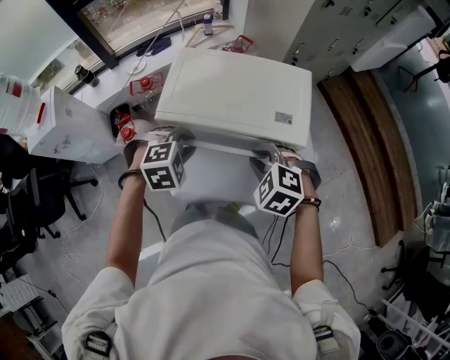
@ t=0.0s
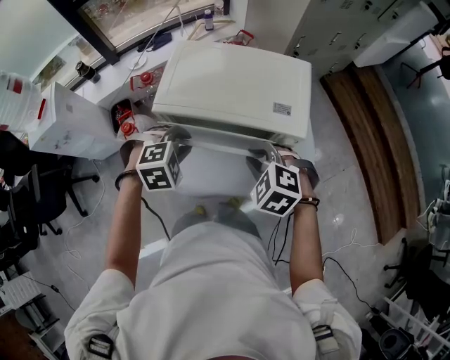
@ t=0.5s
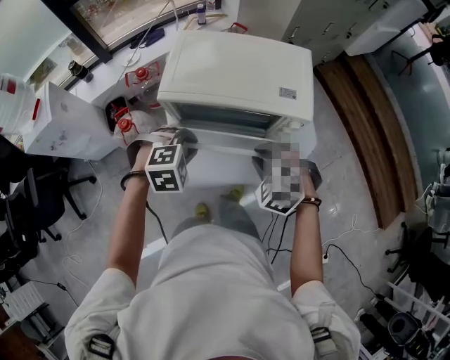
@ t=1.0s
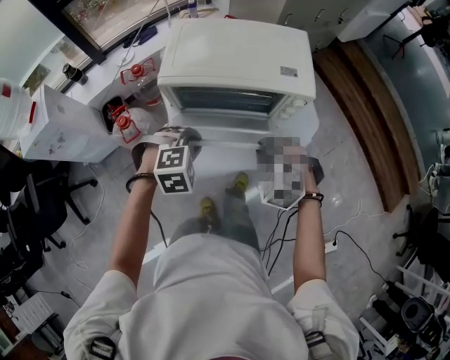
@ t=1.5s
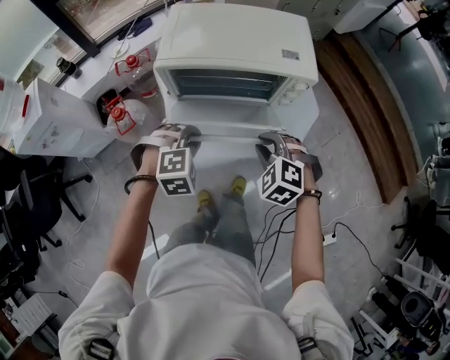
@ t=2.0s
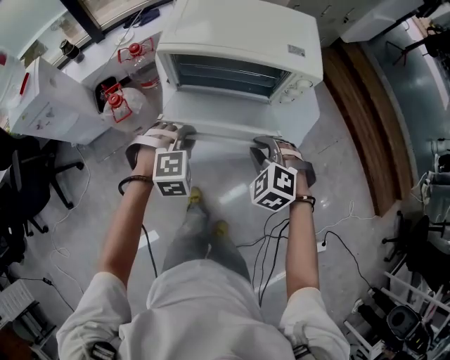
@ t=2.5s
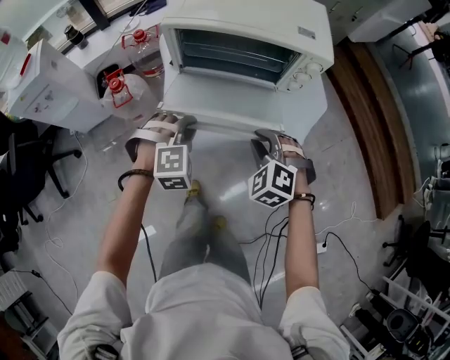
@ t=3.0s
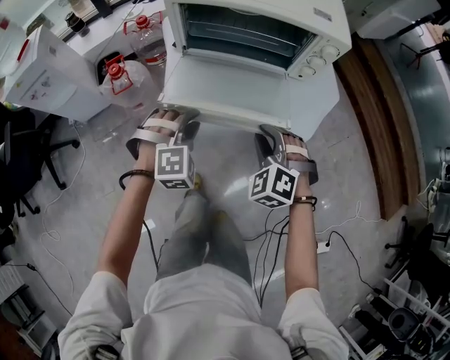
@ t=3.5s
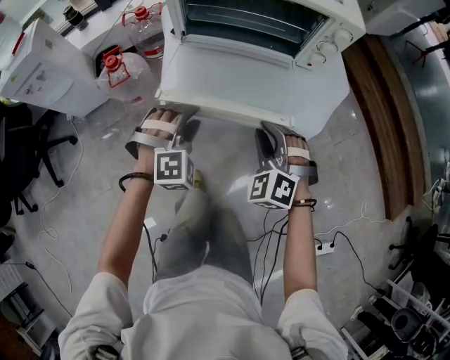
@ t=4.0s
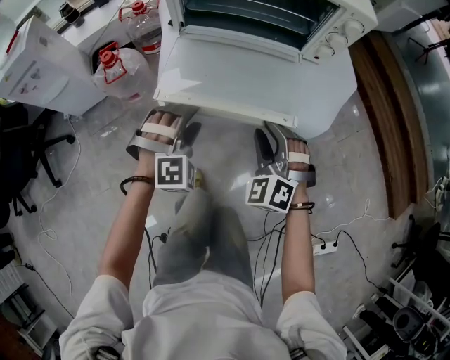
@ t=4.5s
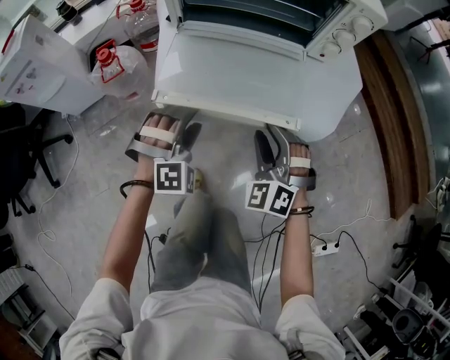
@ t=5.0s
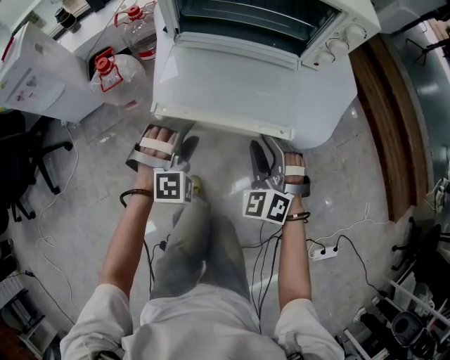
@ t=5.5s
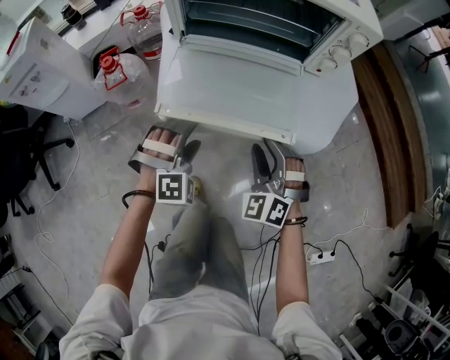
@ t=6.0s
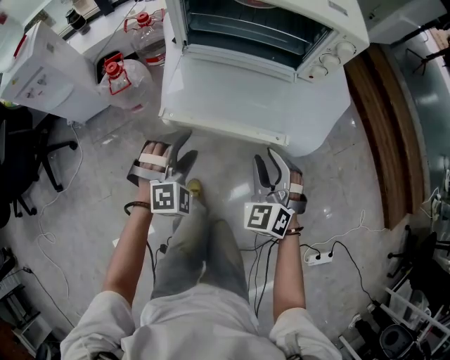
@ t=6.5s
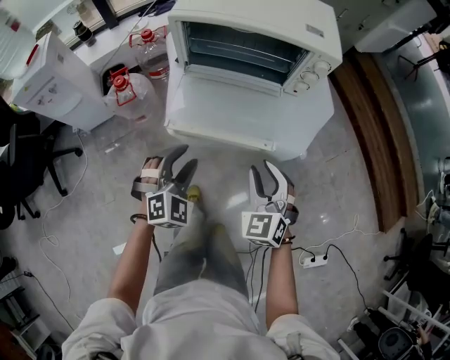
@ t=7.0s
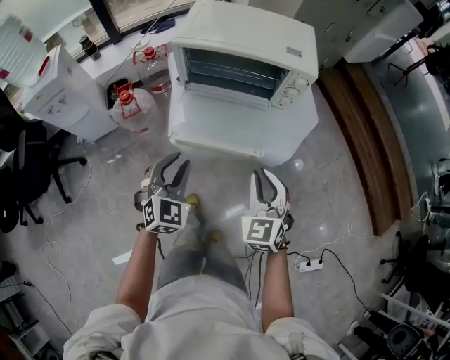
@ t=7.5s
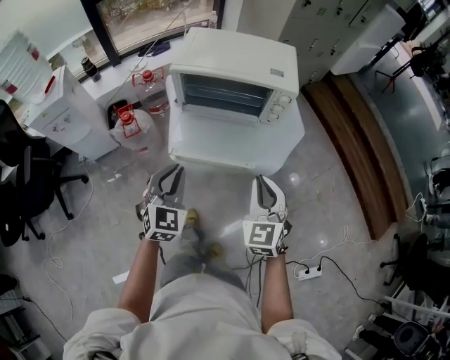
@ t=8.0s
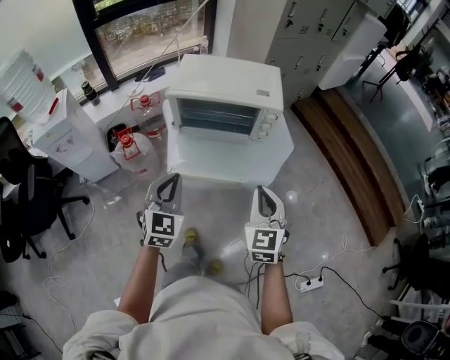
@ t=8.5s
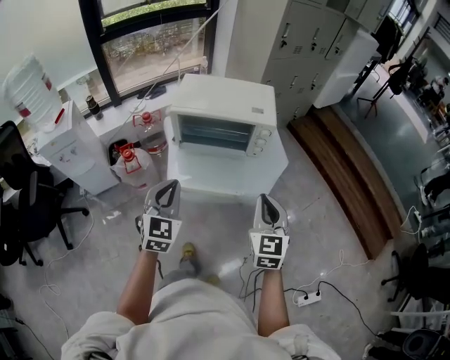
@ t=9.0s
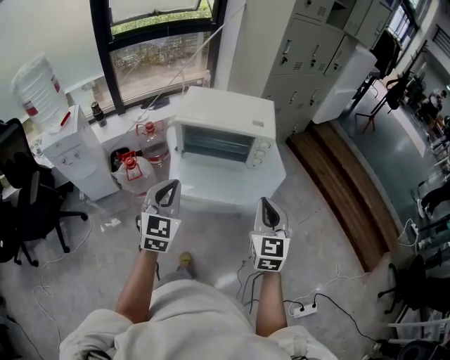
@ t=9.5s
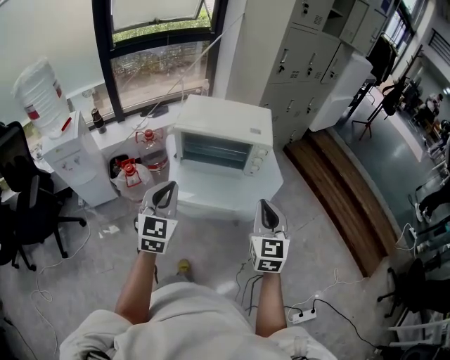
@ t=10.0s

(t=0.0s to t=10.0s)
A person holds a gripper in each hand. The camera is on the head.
t=0.0s - t=2.0s: The grippers both shift backward and downward by some 15 cm.
t=2.0s - t=4.0s: The grippers both shift downward and backward by about 15 cm. The left gripper rotates roughly 20 degrees, and opens its fingers. The right gripper changes its angle by approximately 20 degrees.
t=4.0s - t=6.0s: The left gripper shifts about 5 cm downward, and opens up.
t=6.0s - t=8.0s: Both grippers move upward, roughly 30 cm. The left gripper twists some 50 degrees counterclockwise, seen from behind, and closes up; the right gripper turns by approximately 30 degrees, and closes up.
t=8.0s - t=10.0s: The grippers both shift upward by approximately 15 cm.

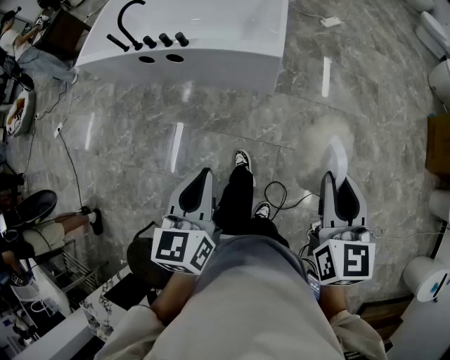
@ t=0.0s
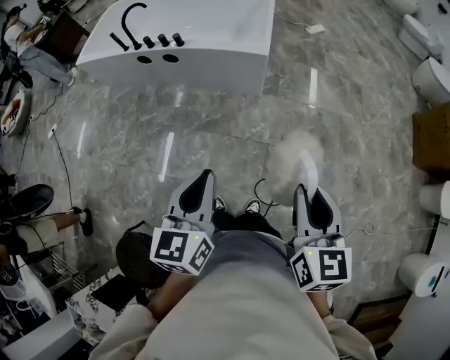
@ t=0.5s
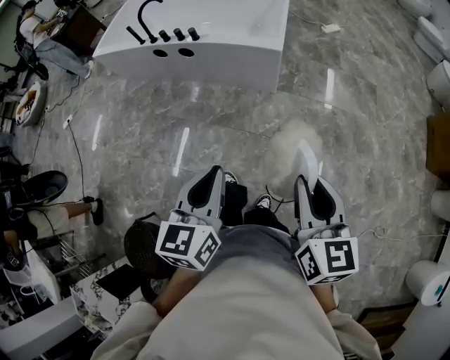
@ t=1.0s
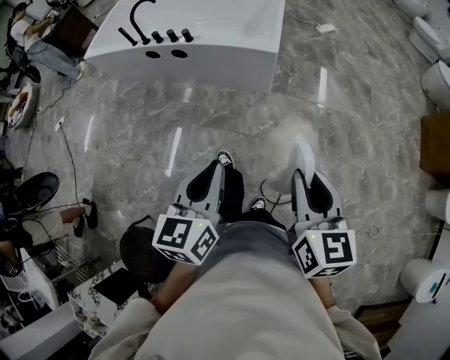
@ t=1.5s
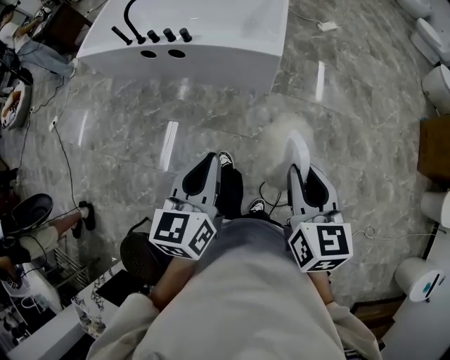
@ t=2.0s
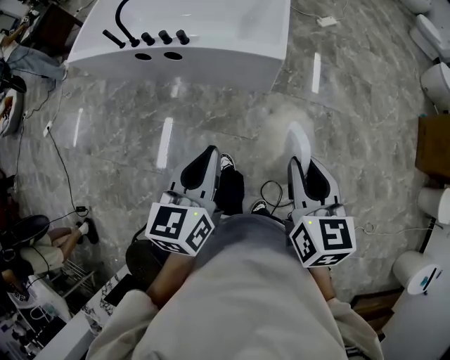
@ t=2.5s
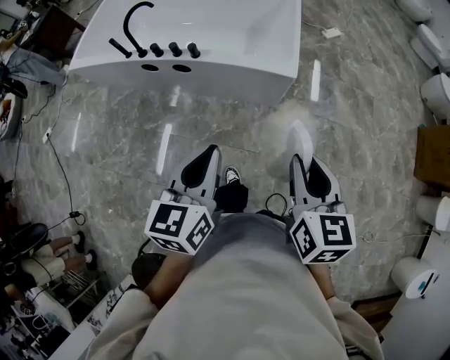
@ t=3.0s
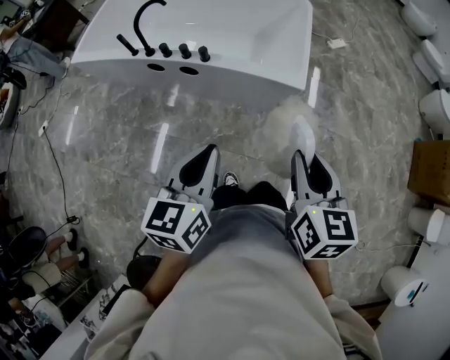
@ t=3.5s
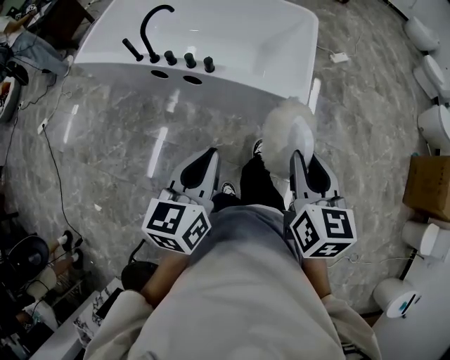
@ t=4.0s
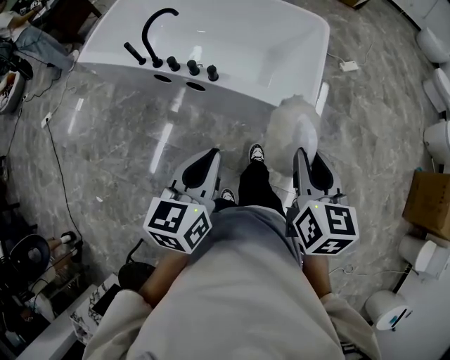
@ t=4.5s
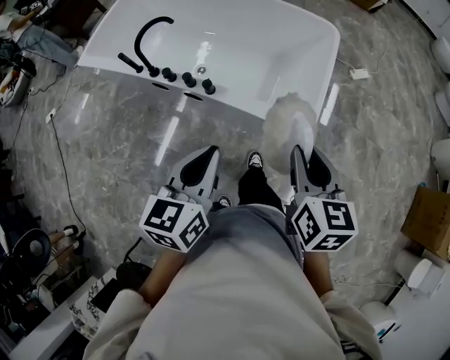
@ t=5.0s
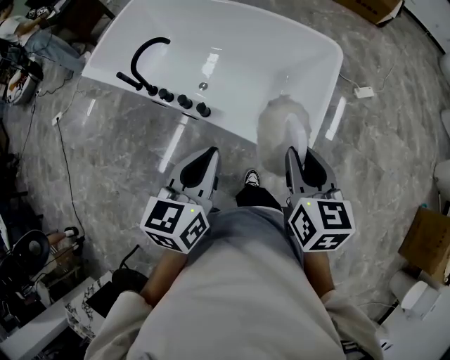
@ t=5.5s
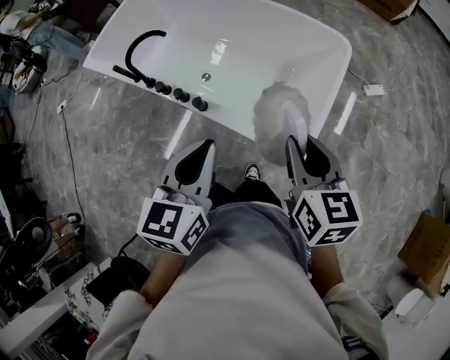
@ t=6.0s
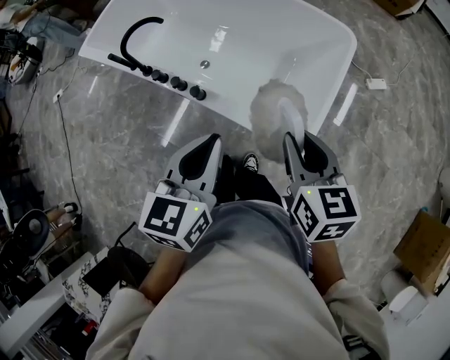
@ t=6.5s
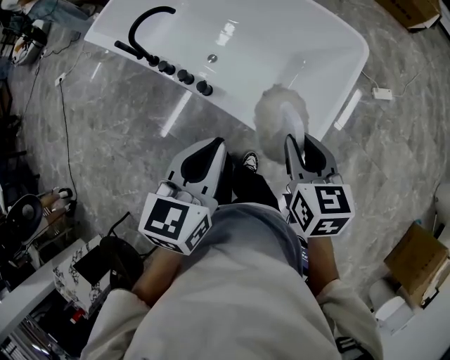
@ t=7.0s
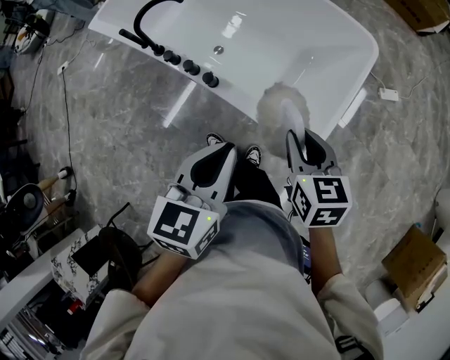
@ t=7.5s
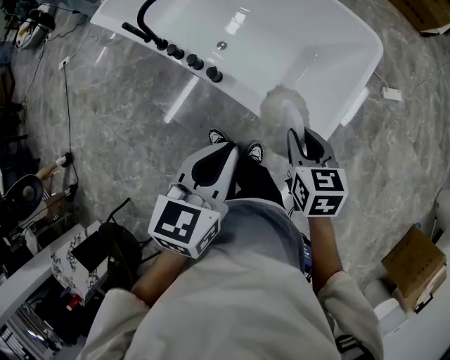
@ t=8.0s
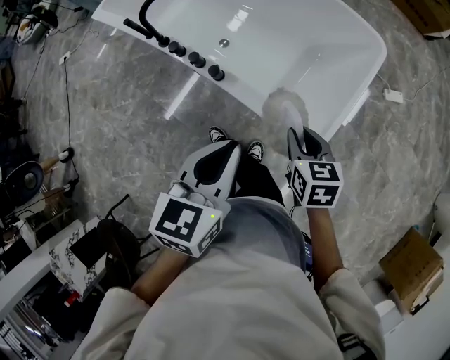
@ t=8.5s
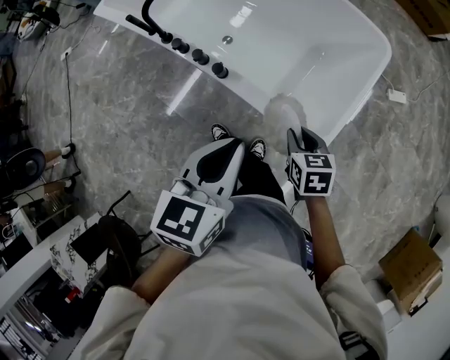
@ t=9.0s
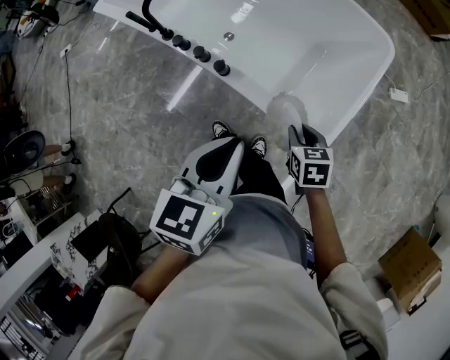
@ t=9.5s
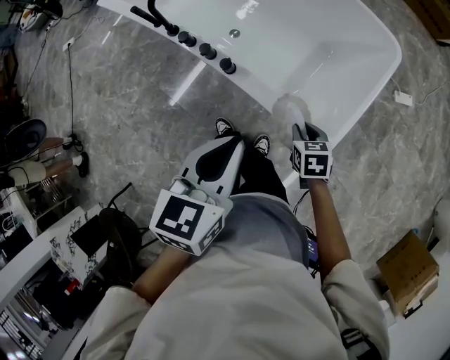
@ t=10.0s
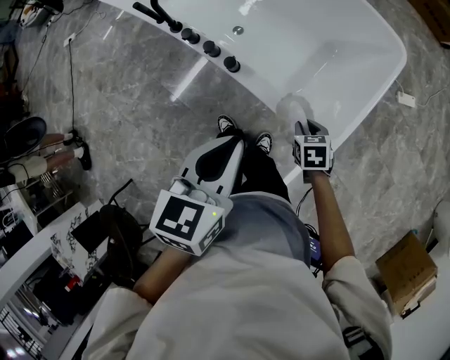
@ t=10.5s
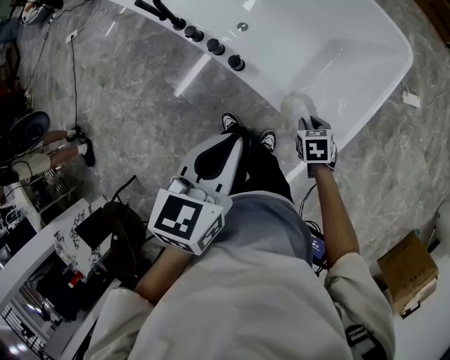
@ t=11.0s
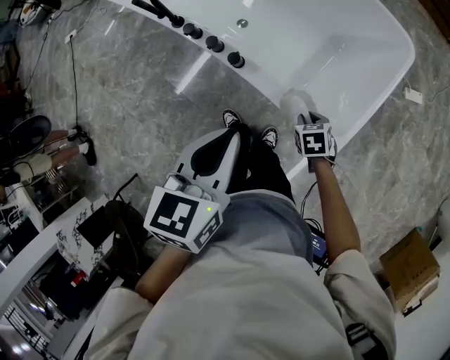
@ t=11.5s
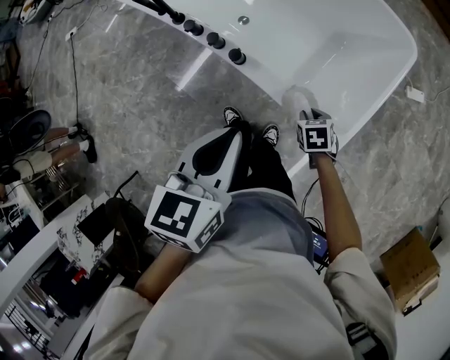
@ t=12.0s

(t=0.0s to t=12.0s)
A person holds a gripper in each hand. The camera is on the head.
t=0.0s - t=2.0s: The left gripper travels backward and back again, roughly 15 cm each way. Meanwhile the right gripper travels to the left by some 10 cm, and reaches some 15 cm backward, then returns.
t=2.0s - t=4.0s: Both grippers move forward and to the left, roughly 30 cm.
t=4.0s - t=6.0s: Both grippers travel together forward, roughly 30 cm. The right gripper turns by approximately 20 degrees.
t=6.0s - t=8.0s: The left gripper goes approximately 5 cm downward, while the right gripper travels downward by approximately 15 cm.
t=8.0s - t=10.0s: The right gripper shifts about 15 cm downward.
t=10.0s - t=12.0s: The right gripper moves downward, roughly 10 cm.

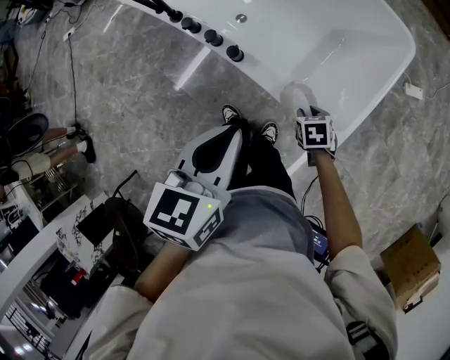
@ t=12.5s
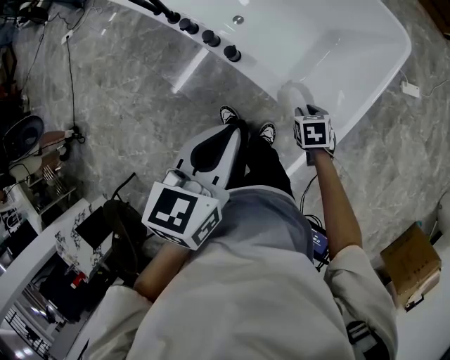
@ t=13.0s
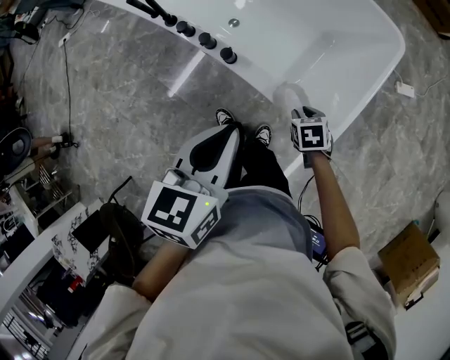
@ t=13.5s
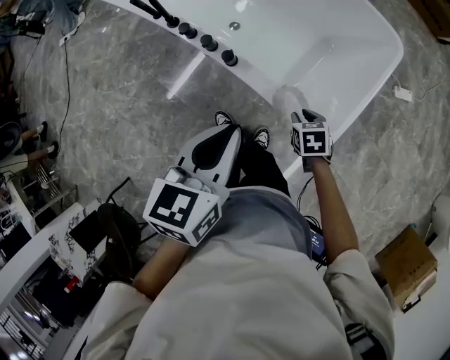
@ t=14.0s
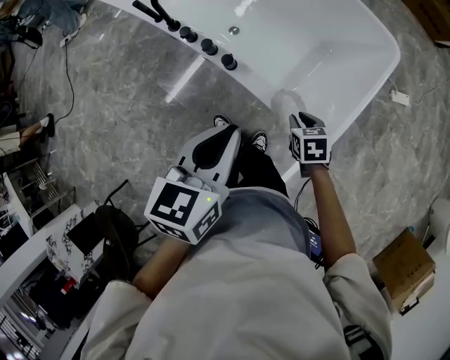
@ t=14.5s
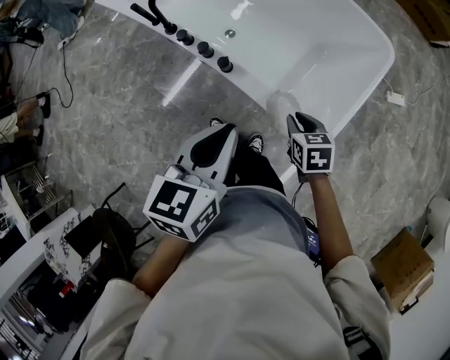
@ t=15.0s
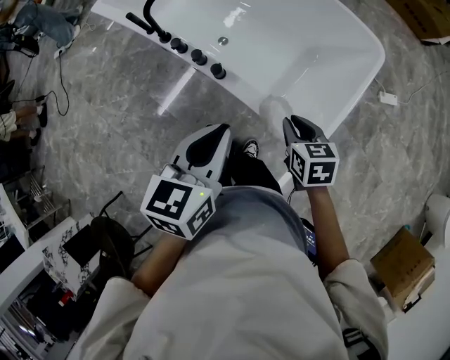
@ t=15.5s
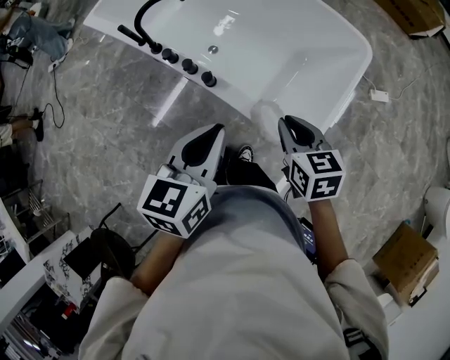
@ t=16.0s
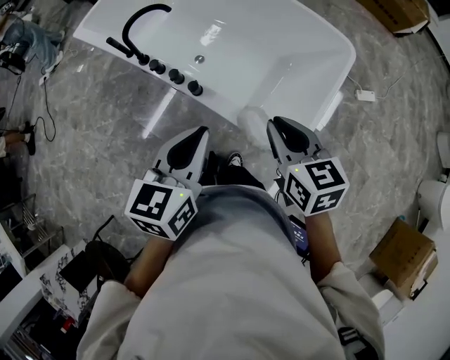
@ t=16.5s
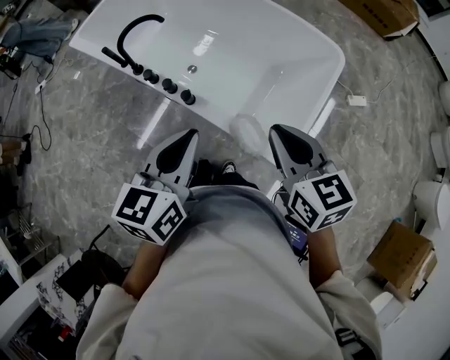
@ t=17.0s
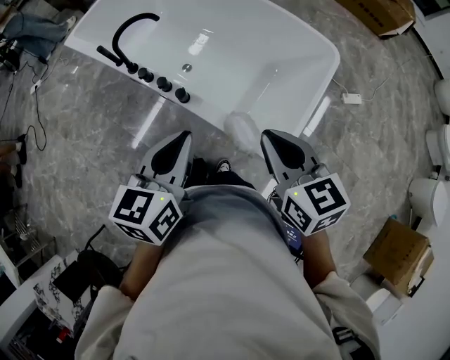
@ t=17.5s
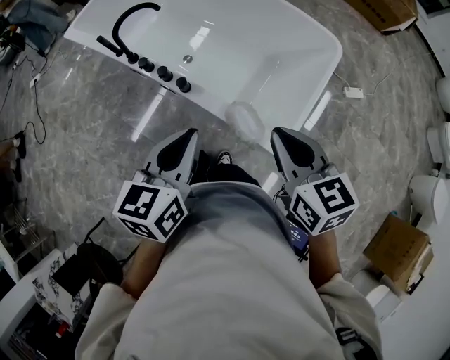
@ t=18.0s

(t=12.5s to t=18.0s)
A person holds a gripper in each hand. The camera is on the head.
t=12.5s - t=14.5s: The right gripper moves upward, roughly 5 cm.
t=14.5s - t=16.0s: The right gripper shifts some 20 cm upward, and changes its angle by some 20 degrees.
t=16.0s - t=18.0s: The right gripper travels upward and backward by about 10 cm.
